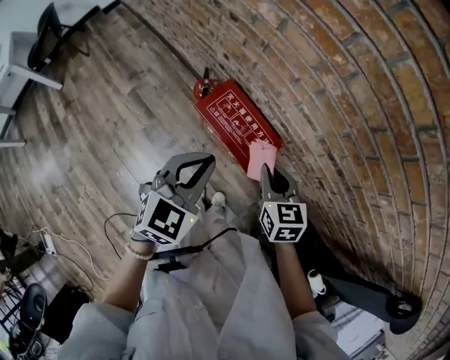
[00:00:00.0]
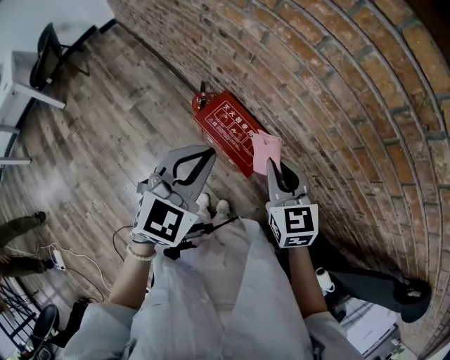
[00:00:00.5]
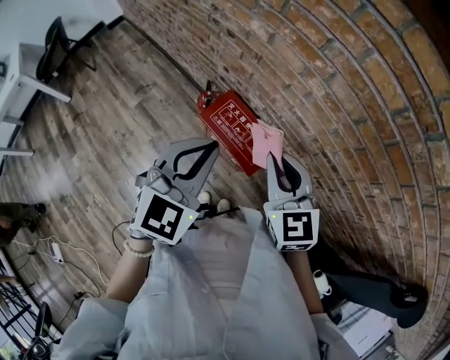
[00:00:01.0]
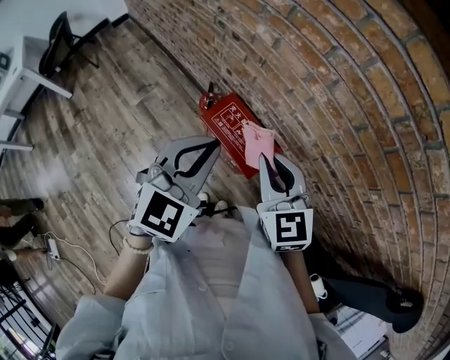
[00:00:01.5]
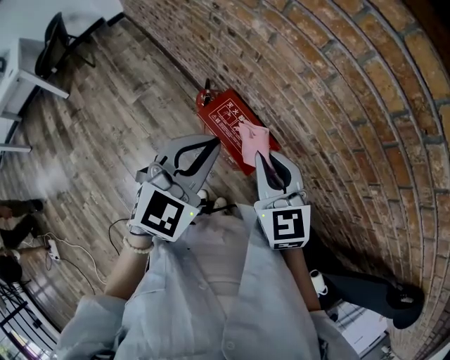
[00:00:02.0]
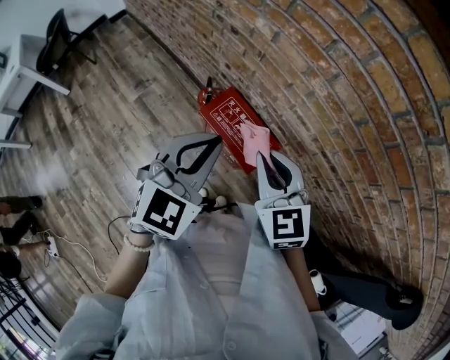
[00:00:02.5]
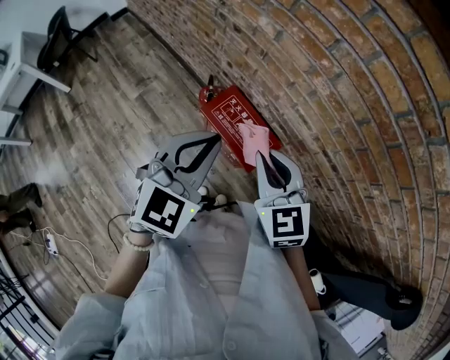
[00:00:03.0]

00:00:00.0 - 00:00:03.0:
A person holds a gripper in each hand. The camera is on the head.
00:00:00.0 - 00:00:01.5: Both grippers travel together upward, approximately 15 cm. The right gripper swivels about 20 degrees.
00:00:01.5 - 00:00:03.0: There are only small adjustments of the grippers.

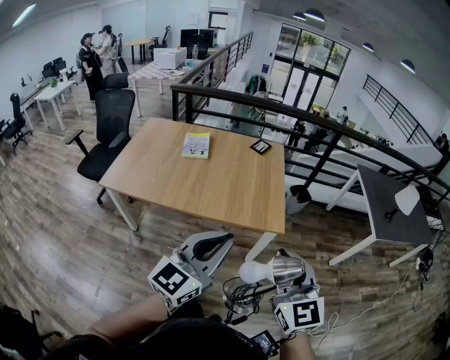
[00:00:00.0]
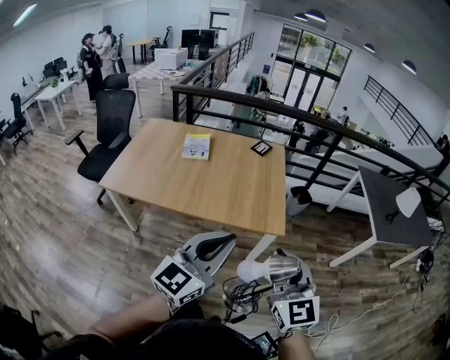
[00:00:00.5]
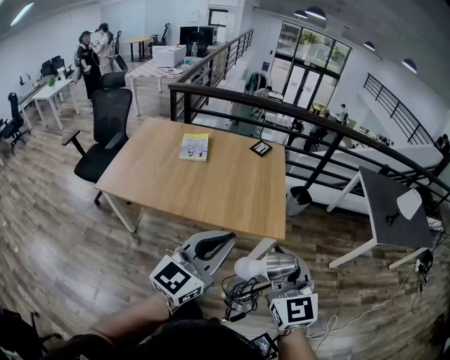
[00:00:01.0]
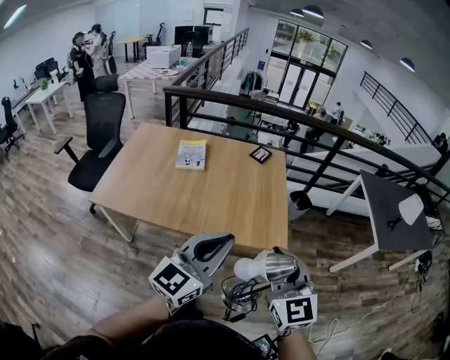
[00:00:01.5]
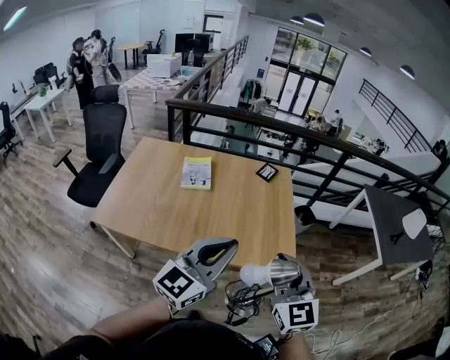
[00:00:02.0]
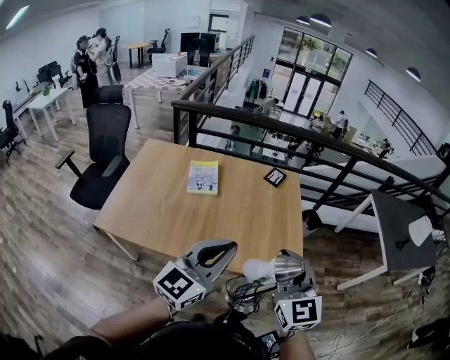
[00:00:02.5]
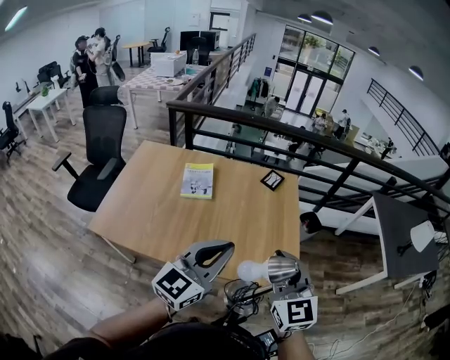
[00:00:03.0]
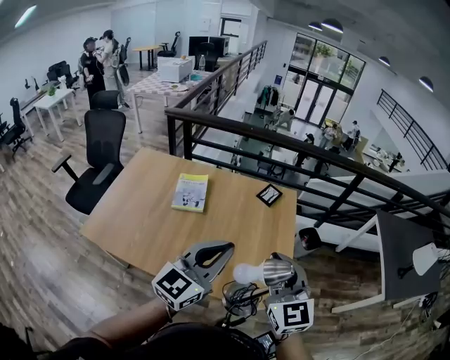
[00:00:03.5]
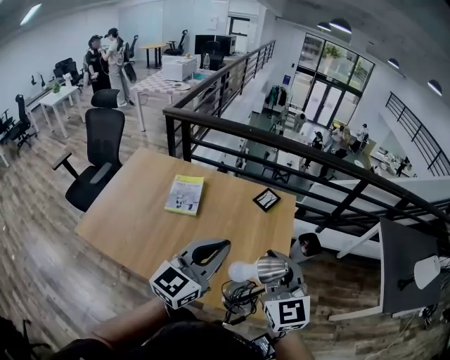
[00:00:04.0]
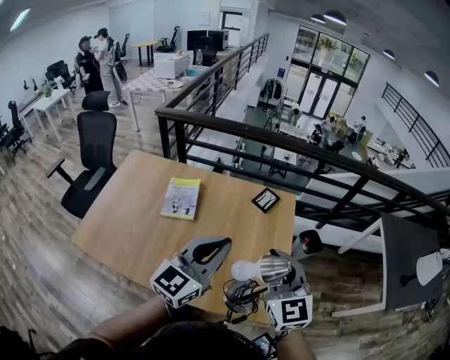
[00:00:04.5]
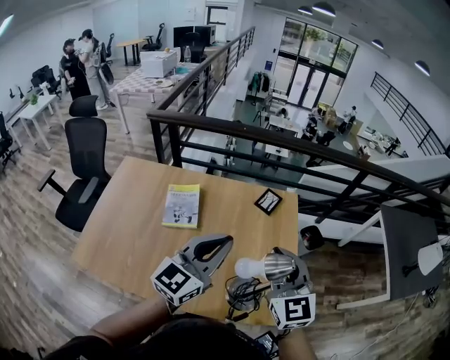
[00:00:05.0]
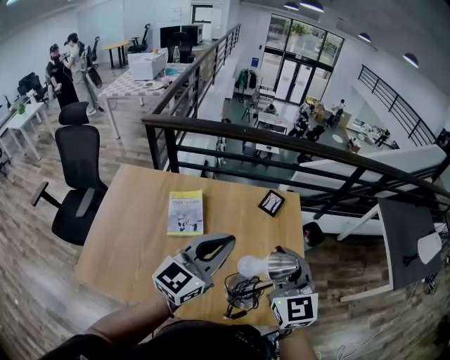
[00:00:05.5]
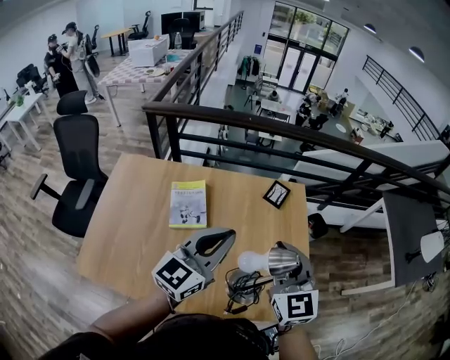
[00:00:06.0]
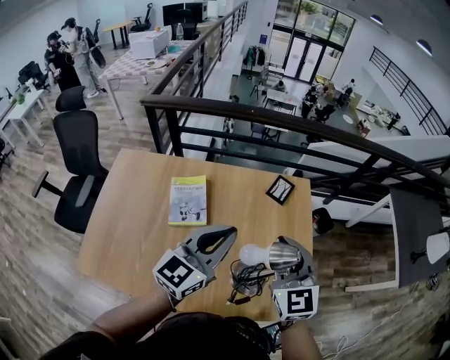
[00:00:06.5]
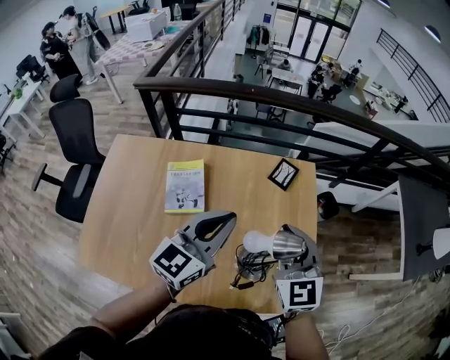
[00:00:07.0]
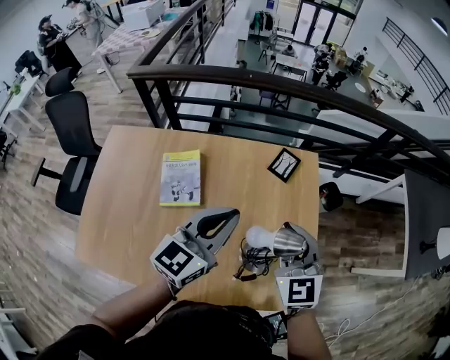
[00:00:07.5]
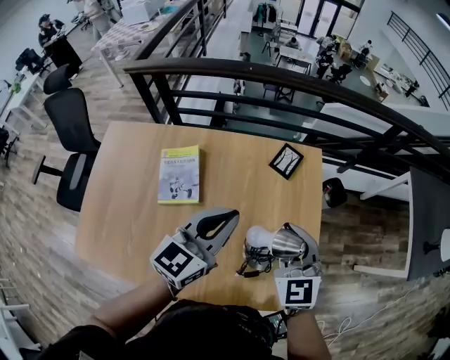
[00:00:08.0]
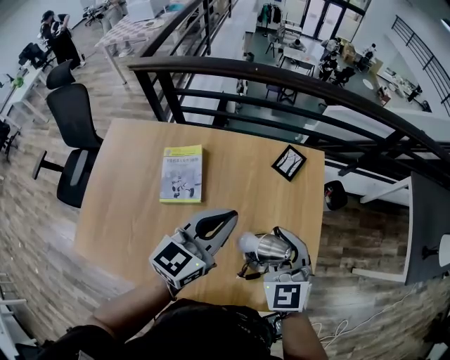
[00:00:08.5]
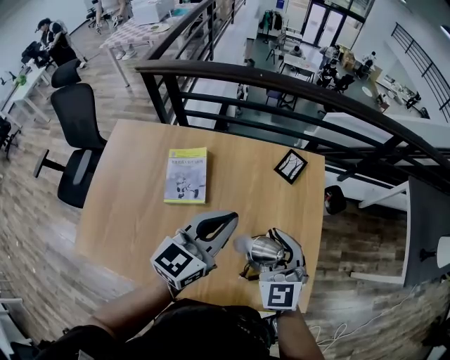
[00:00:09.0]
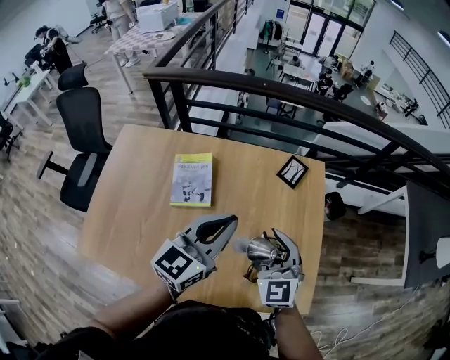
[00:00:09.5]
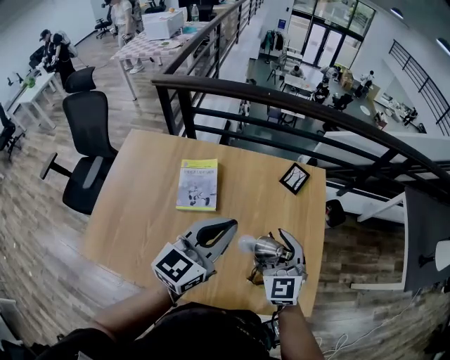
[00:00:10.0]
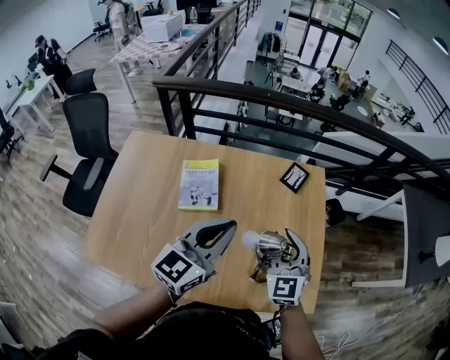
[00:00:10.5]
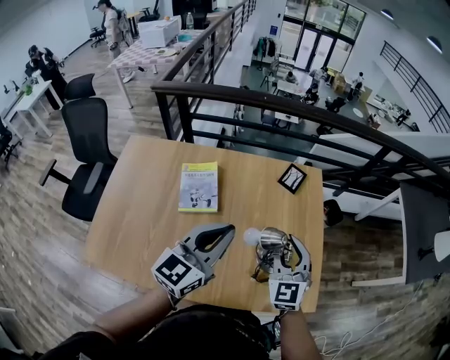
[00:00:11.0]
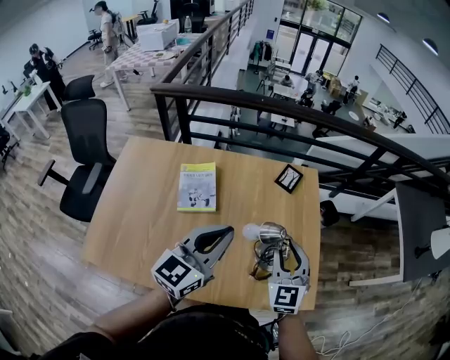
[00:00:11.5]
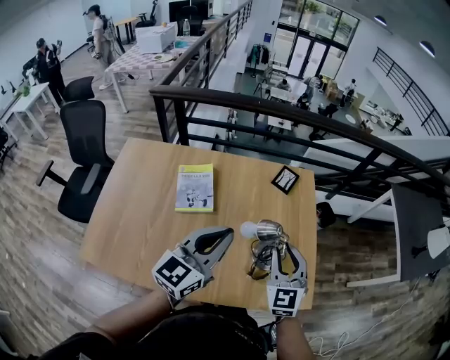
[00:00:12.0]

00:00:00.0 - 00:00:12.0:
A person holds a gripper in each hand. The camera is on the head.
00:00:00.0 - 00:00:02.0: Both grippers move forward and to the left, approximately 25 cm.
00:00:02.0 - 00:00:04.0: The grippers both shift forward by roughly 25 cm.
00:00:04.0 - 00:00:06.0: Both grippers travel together to the left and forward, roughly 20 cm.
00:00:06.0 - 00:00:08.0: The two grippers go about 20 cm forward, downward and to the right.
00:00:08.0 - 00:00:10.0: The right gripper travels to the left and backward by some 10 cm. The left gripper goes some 10 cm backward and to the left.
00:00:10.0 - 00:00:12.0: The two grippers go roughly 10 cm backward.

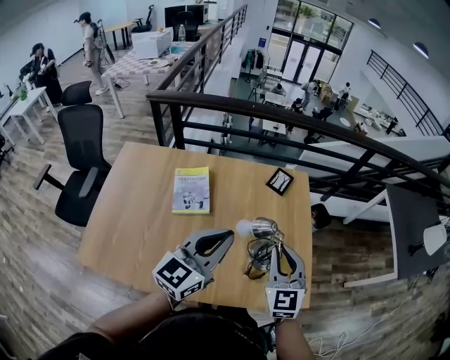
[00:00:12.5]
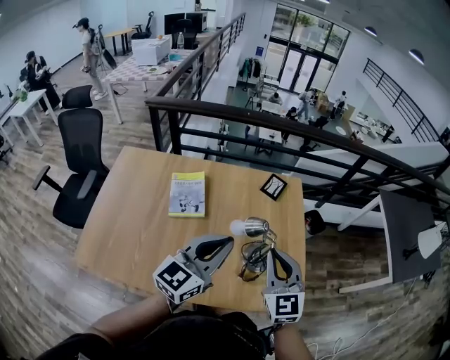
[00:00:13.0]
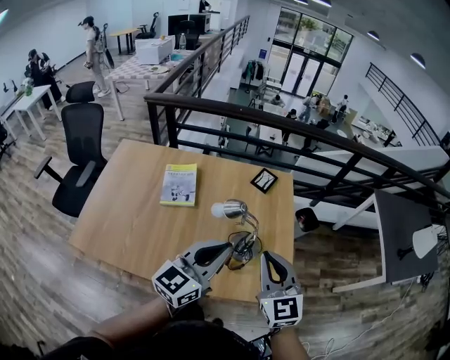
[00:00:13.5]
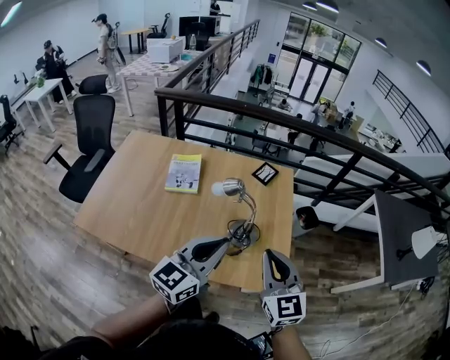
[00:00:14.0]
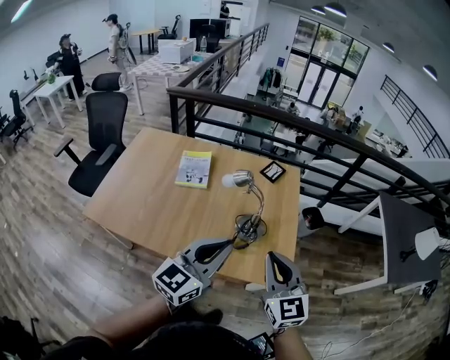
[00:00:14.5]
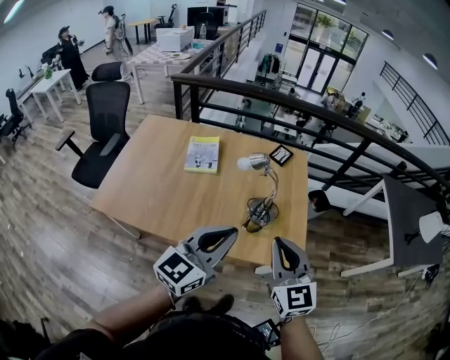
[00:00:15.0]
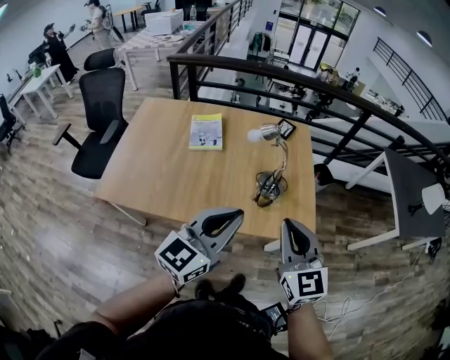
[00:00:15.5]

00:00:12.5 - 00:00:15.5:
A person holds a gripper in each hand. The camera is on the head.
00:00:12.5 - 00:00:14.0: Both grippers move backward and to the right, about 20 cm.
00:00:14.0 - 00:00:15.5: The grippers both shift backward and to the left by about 15 cm.

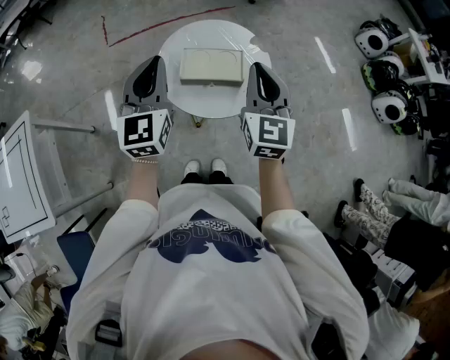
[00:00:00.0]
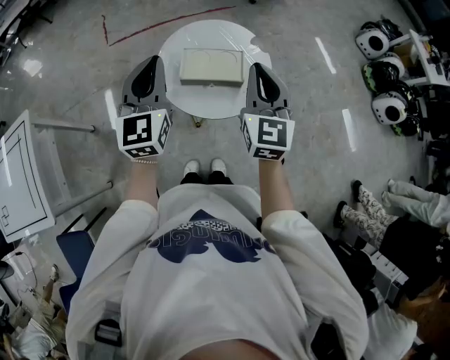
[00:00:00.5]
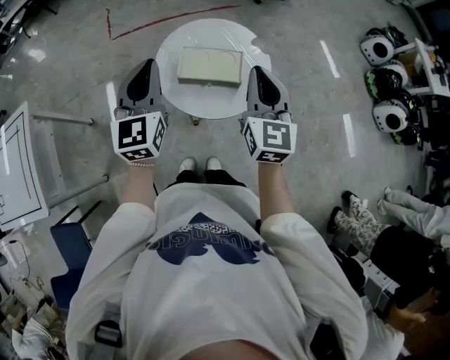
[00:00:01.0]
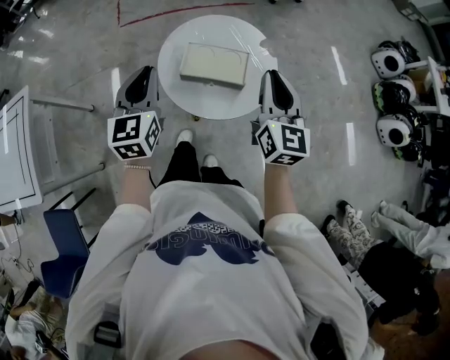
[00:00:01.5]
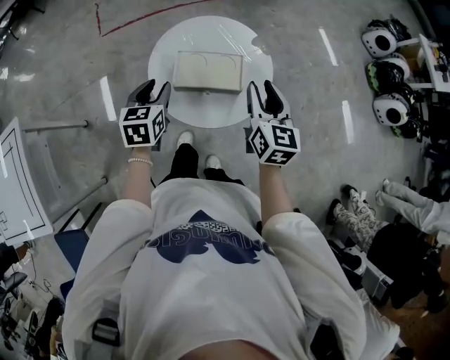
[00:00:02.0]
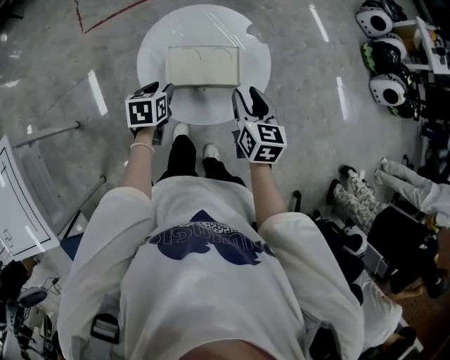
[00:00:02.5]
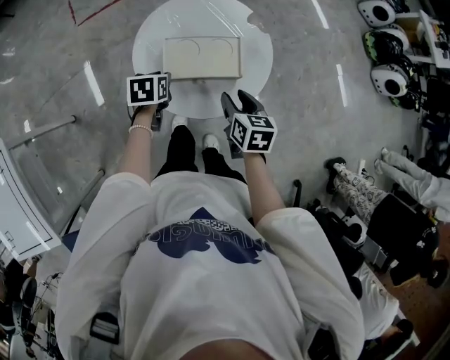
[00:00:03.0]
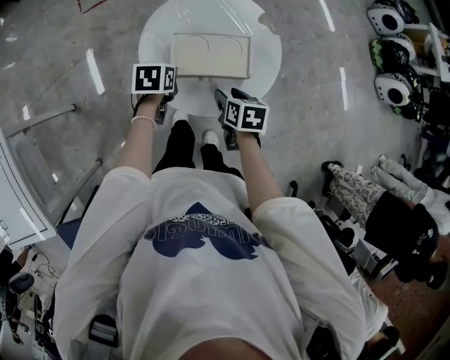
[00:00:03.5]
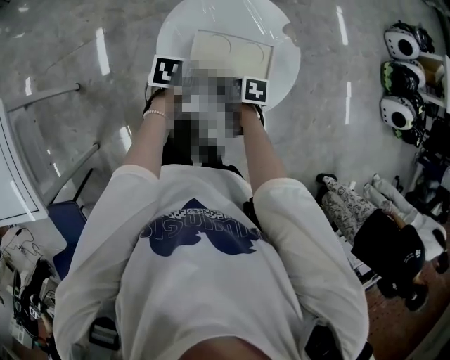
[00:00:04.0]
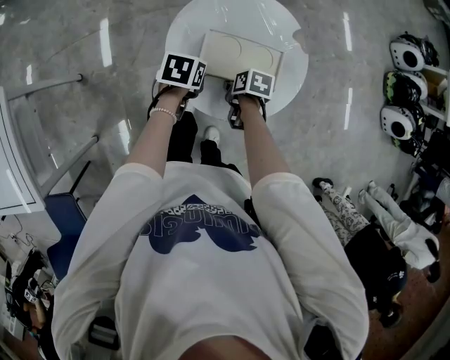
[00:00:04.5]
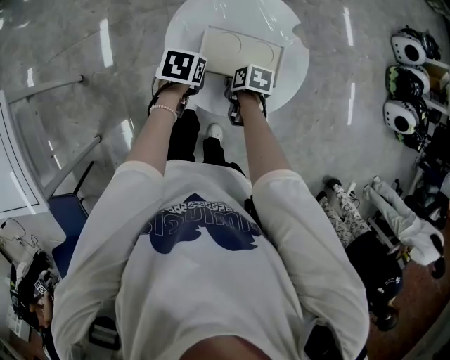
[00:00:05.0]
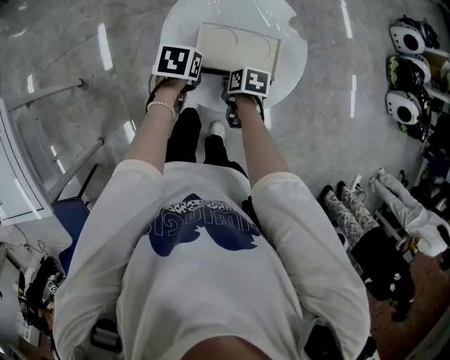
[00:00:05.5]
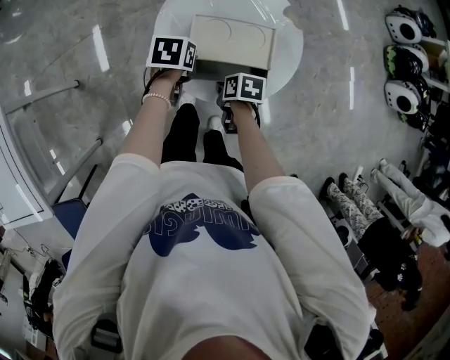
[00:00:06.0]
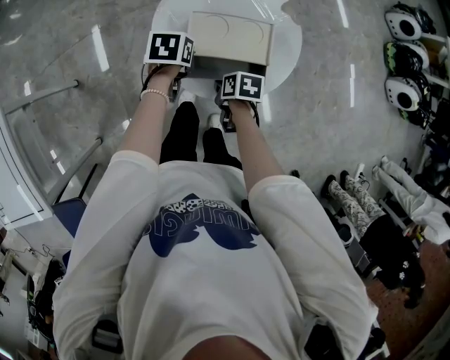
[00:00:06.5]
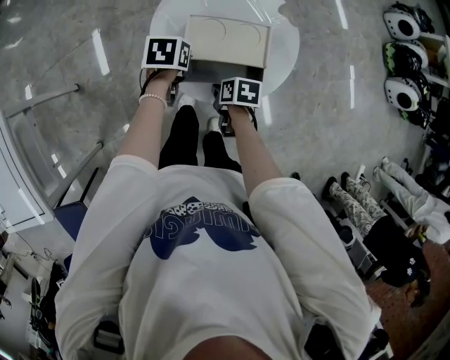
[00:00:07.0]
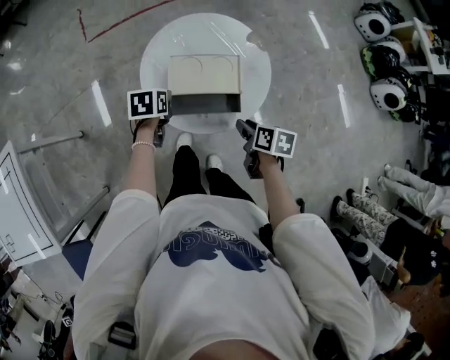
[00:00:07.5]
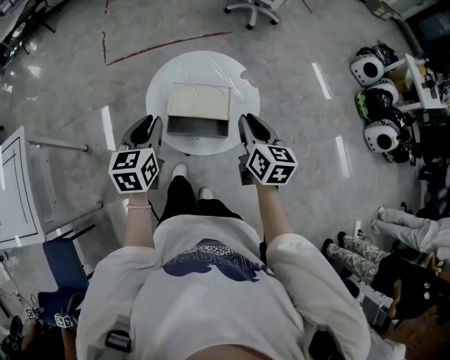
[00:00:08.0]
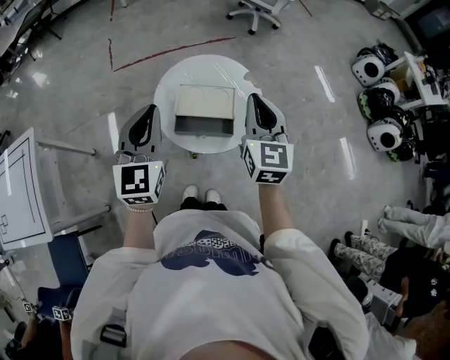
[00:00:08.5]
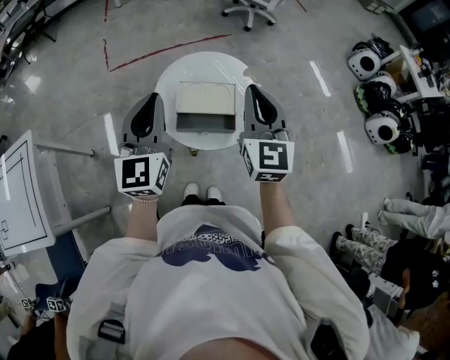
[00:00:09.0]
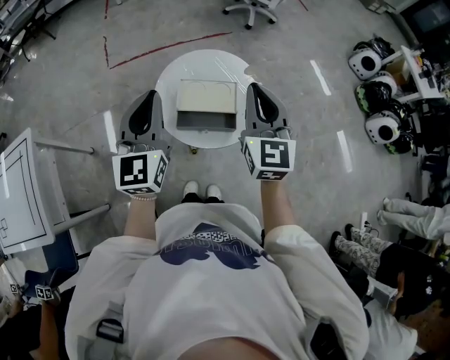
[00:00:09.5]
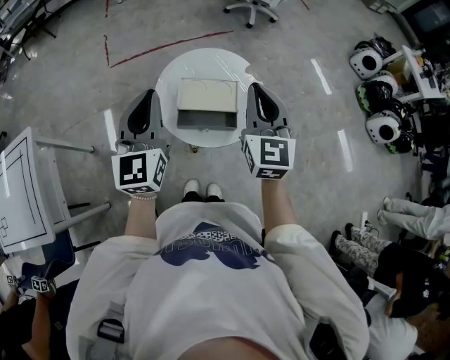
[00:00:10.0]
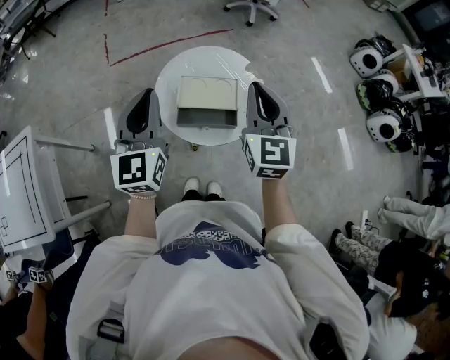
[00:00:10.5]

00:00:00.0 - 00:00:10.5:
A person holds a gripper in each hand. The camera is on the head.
00:00:00.0 - 00:00:02.0: The right gripper moves downward and forward, approximately 10 cm, changes its angle by approximately 20 degrees, and opens up. The left gripper heads downward, covering approximately 20 cm, tips its fingers downward by approximately 30 degrees, and opens its fingers.
00:00:02.0 - 00:00:04.0: The right gripper shifts approximately 30 cm downward, and tips its fingers downward by some 50 degrees. Meanwhile the left gripper moves downward, about 15 cm, and turns by some 30 degrees.
00:00:04.0 - 00:00:06.5: The right gripper changes place by roughly 5 cm, and closes up.
00:00:06.5 - 00:00:08.5: The two grippers go some 40 cm upward. The right gripper angles its fingers upward, by about 60 degrees. The left gripper points its fingers approximately 60 degrees further upward.
00:00:08.5 - 00:00:10.5: There are only small adjustments of the grippers.
